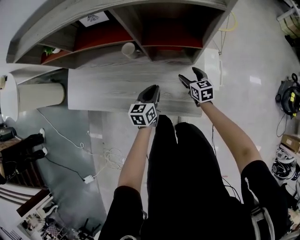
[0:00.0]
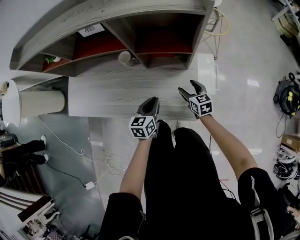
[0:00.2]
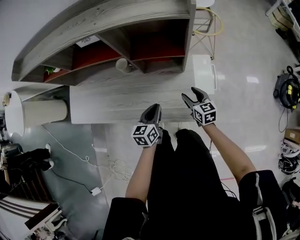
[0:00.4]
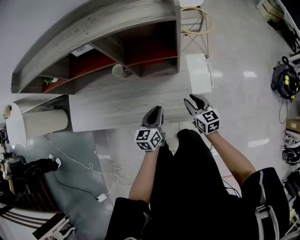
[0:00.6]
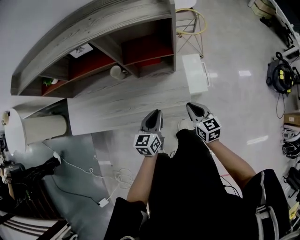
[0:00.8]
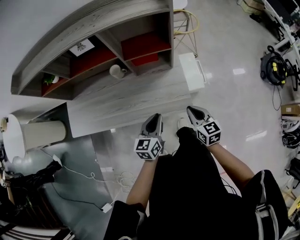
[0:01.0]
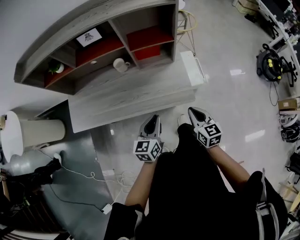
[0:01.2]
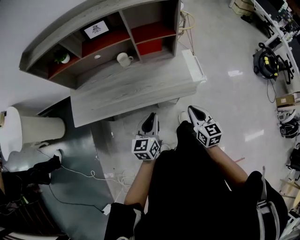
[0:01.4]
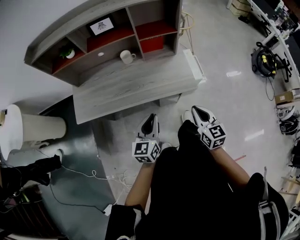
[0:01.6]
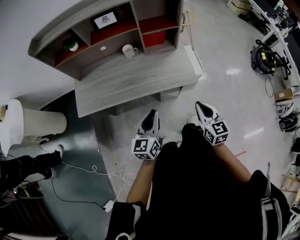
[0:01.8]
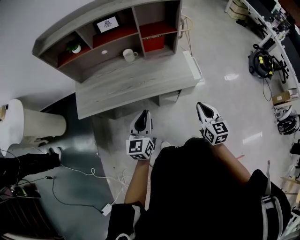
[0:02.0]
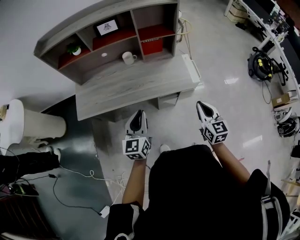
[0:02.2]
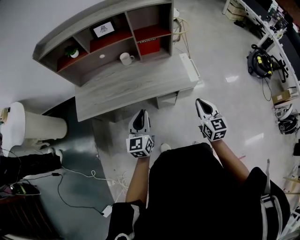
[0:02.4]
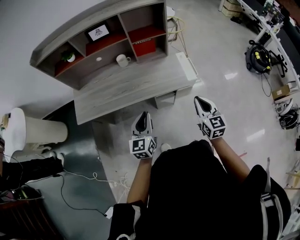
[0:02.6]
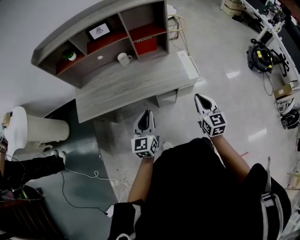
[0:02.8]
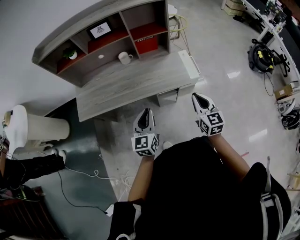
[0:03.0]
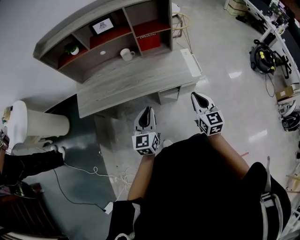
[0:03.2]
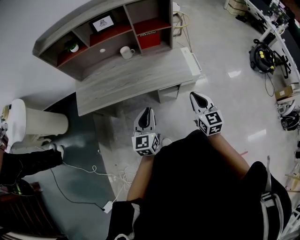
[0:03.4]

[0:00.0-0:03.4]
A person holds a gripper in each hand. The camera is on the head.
0.0 to 1.6 s: The two grippers go roughly 40 cm backward and upward. The right gripper swivels approximately 20 degrees, and closes up. Meanwhile the left gripper turns by some 20 degrees.
1.6 to 3.4 s: The left gripper travels backward by approximately 5 cm.

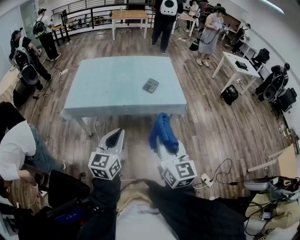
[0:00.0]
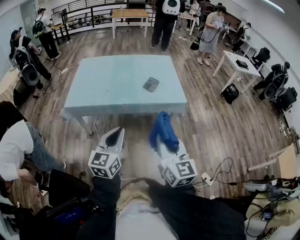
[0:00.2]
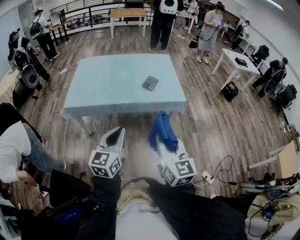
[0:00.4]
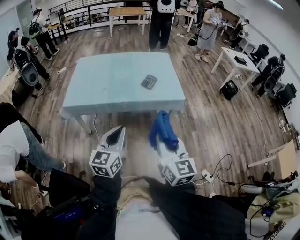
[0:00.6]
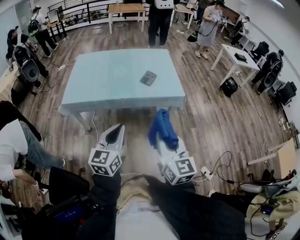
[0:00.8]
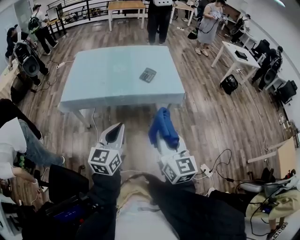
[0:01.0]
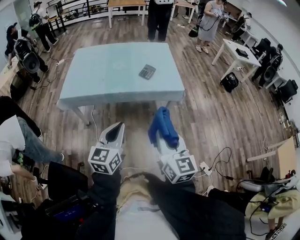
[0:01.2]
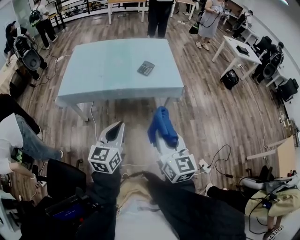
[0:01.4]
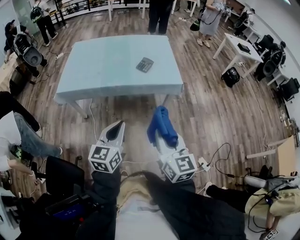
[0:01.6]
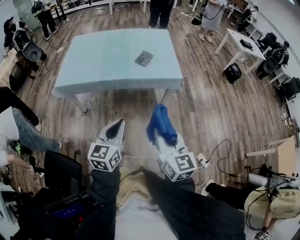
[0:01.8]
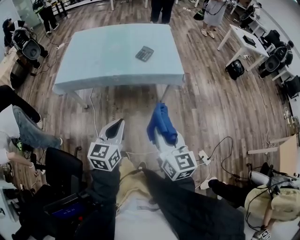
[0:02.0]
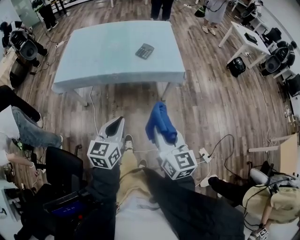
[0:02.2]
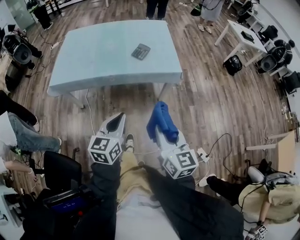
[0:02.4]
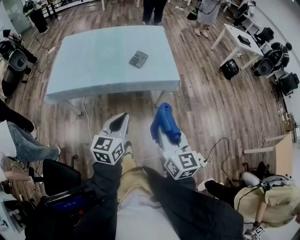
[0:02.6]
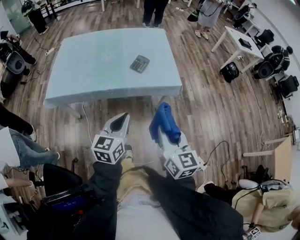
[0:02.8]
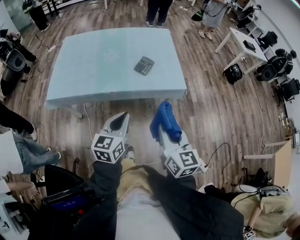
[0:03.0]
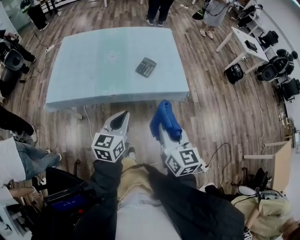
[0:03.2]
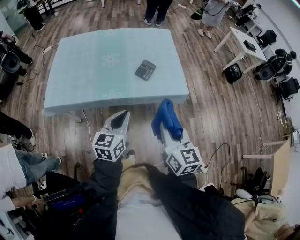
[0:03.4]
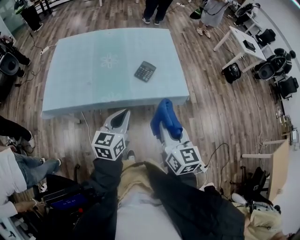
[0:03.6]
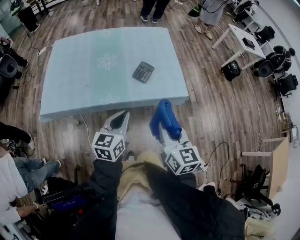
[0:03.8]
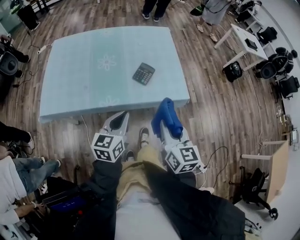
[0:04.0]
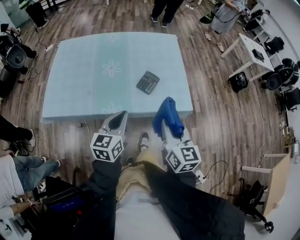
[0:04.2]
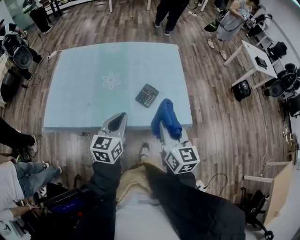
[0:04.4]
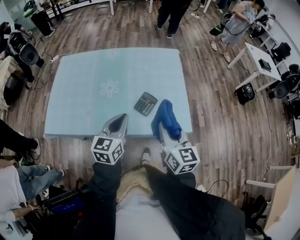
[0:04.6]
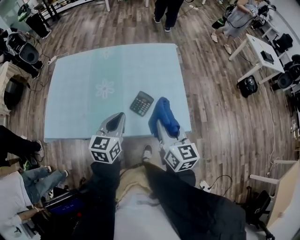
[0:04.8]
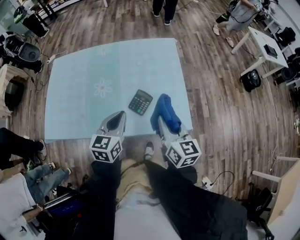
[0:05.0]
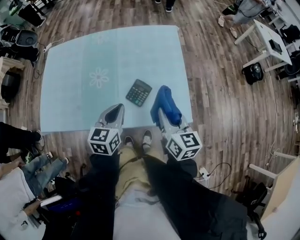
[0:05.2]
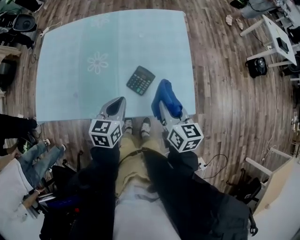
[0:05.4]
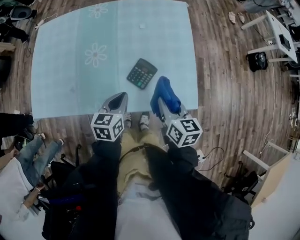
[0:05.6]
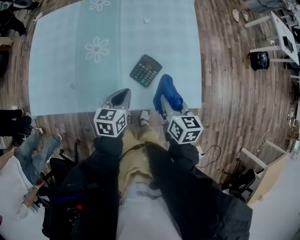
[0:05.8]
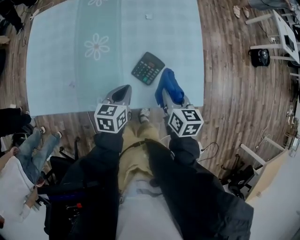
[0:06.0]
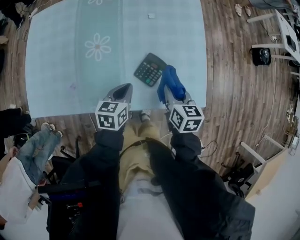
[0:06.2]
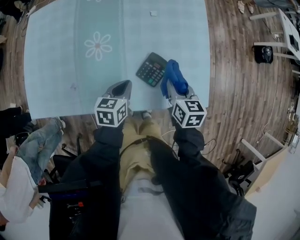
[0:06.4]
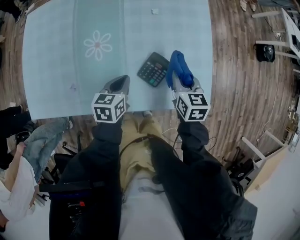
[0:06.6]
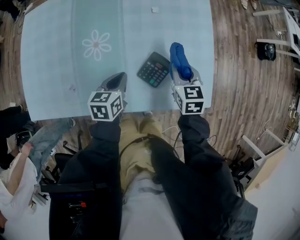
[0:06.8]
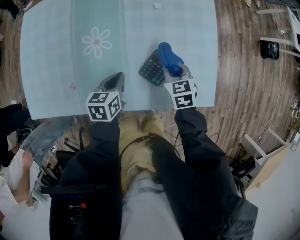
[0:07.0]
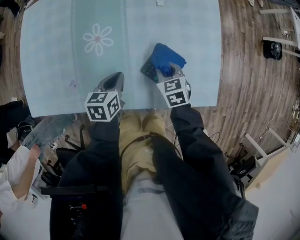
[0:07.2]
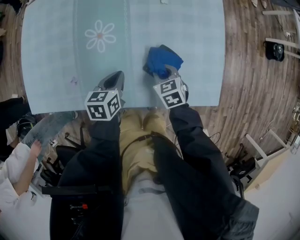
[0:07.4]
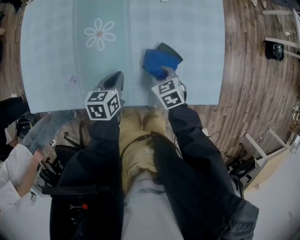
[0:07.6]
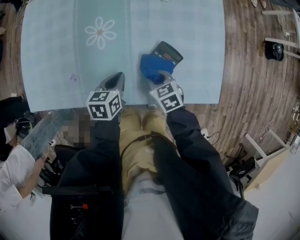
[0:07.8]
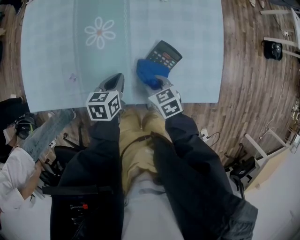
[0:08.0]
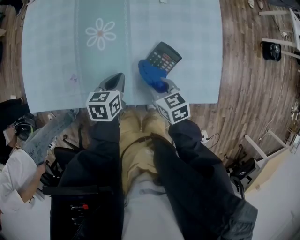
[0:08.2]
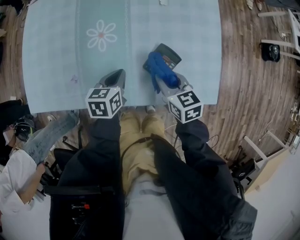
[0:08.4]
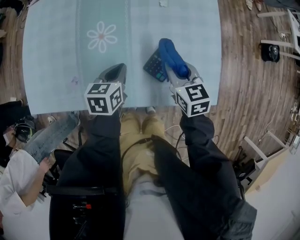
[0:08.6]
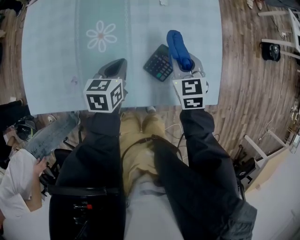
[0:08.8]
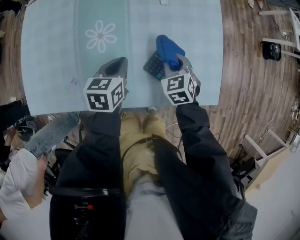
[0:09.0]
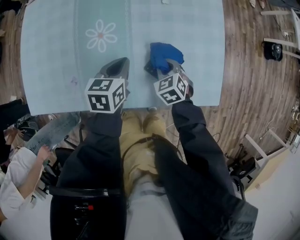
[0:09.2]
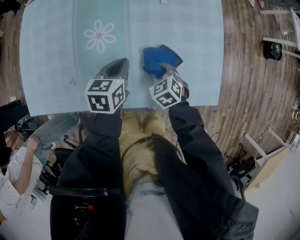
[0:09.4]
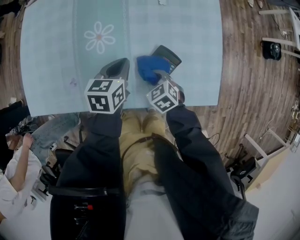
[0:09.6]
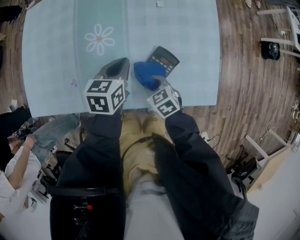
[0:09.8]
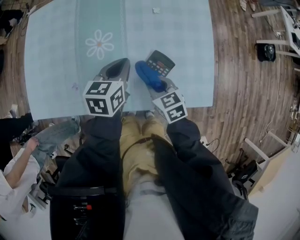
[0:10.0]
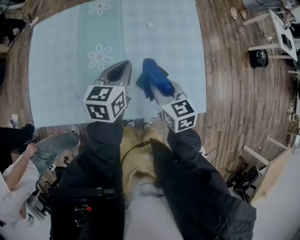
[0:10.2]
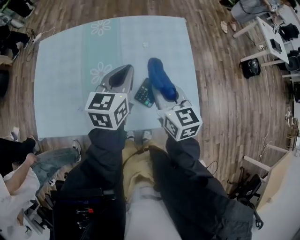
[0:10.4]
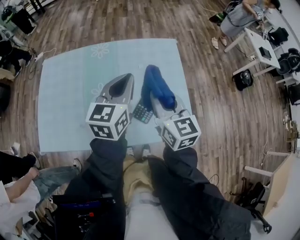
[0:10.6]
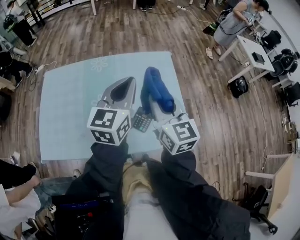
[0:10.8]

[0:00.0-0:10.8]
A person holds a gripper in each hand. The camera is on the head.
0.0 to 1.6 s: The grippers both shift to the right by about 5 cm.
1.6 to 3.0 s: The two grippers go roughly 20 cm forward.
3.0 to 4.6 s: The grippers both shift forward by some 30 cm.
4.6 to 6.2 s: Both grippers travel together downward and forward, approximately 25 cm. The right gripper changes its angle by some 30 degrees. The left gripper turns by approximately 30 degrees.
6.2 to 7.8 s: The left gripper shifts about 10 cm to the left and downward, while the right gripper is displaced downward and to the left by approximately 20 cm, and turns by about 30 degrees.
7.8 to 9.2 s: The left gripper travels forward and upward by approximately 10 cm. The right gripper heads forward, covering approximately 5 cm, travels upward and back again, approximately 10 cm each way, and changes its angle by roughly 20 degrees.
9.2 to 10.8 s: Both grippers move upward, some 40 cm. The left gripper angles its fingers upward, by approximately 40 degrees, while the right gripper angles its fingers upward, by some 50 degrees.

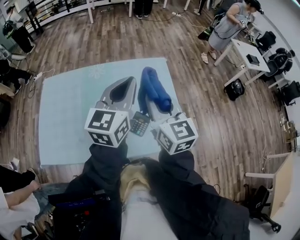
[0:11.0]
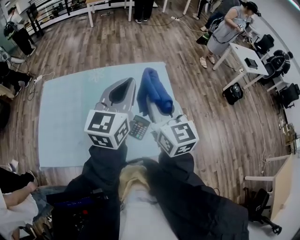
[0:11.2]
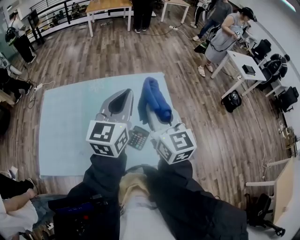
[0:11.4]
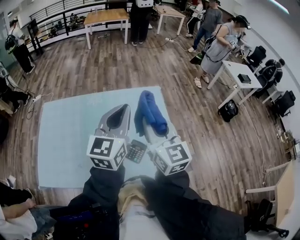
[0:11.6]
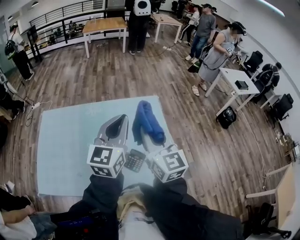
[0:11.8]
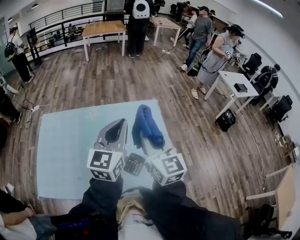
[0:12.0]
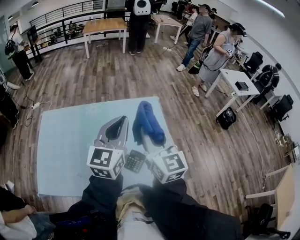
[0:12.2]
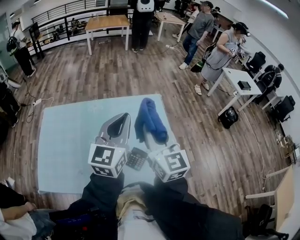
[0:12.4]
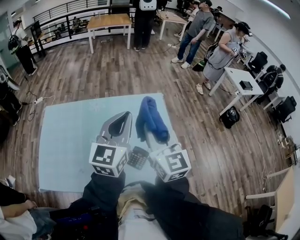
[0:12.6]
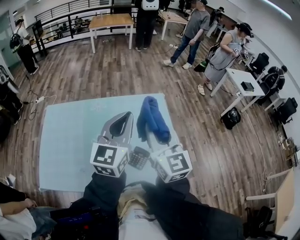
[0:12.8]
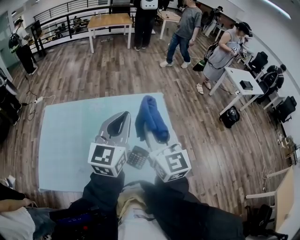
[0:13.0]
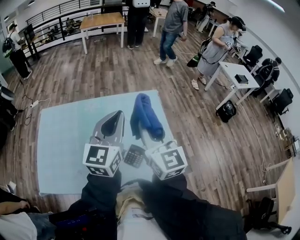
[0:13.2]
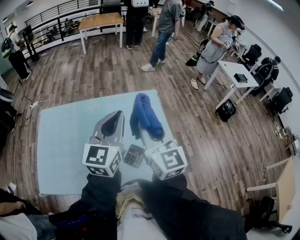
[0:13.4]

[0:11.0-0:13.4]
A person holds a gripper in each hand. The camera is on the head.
11.0 to 13.4 s: The grippers stay close to where they were, moving slightly.

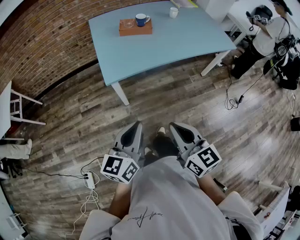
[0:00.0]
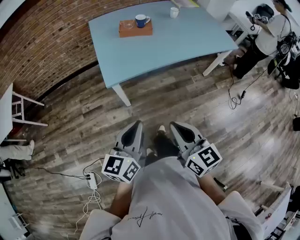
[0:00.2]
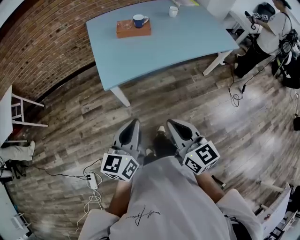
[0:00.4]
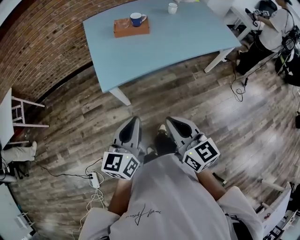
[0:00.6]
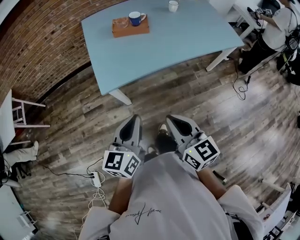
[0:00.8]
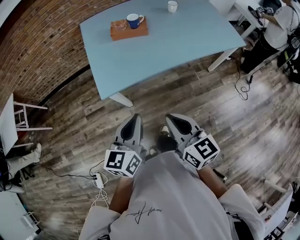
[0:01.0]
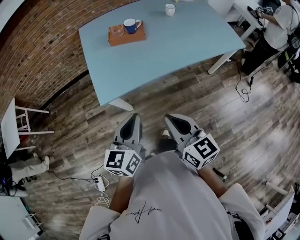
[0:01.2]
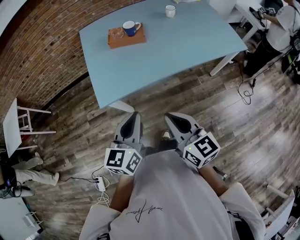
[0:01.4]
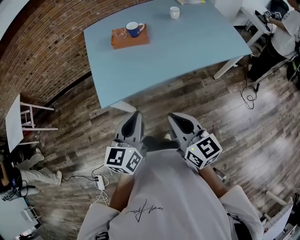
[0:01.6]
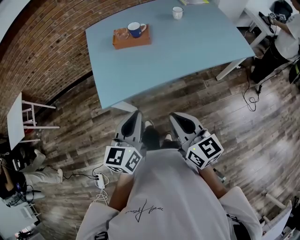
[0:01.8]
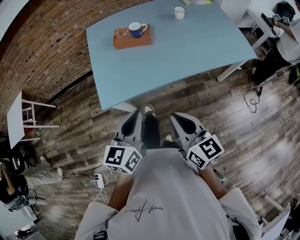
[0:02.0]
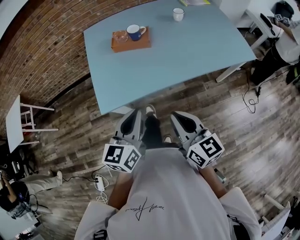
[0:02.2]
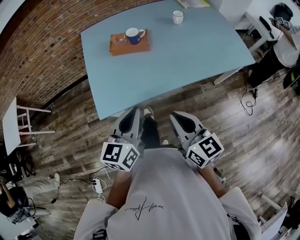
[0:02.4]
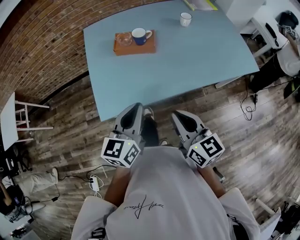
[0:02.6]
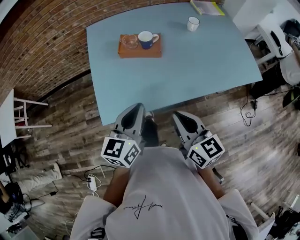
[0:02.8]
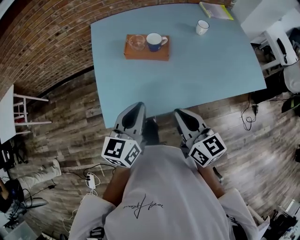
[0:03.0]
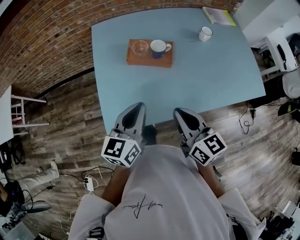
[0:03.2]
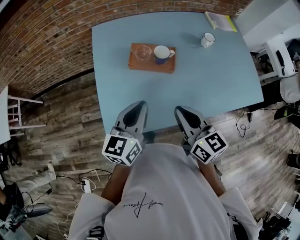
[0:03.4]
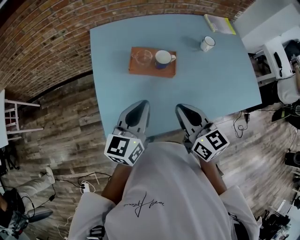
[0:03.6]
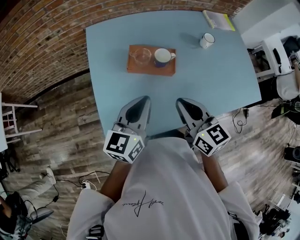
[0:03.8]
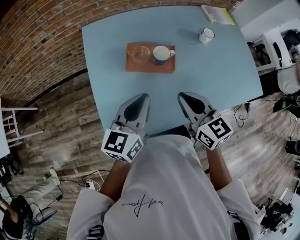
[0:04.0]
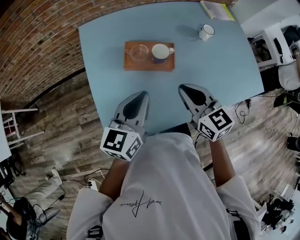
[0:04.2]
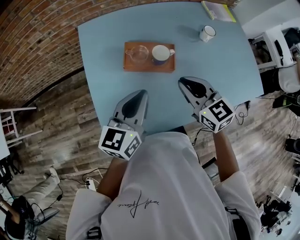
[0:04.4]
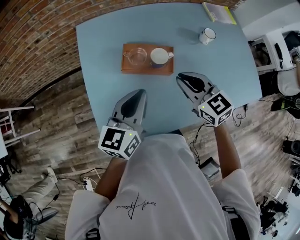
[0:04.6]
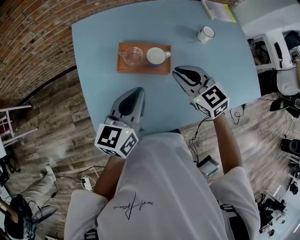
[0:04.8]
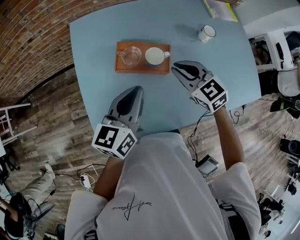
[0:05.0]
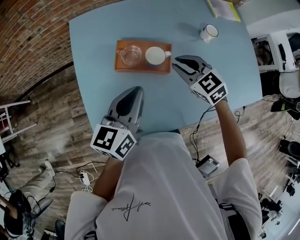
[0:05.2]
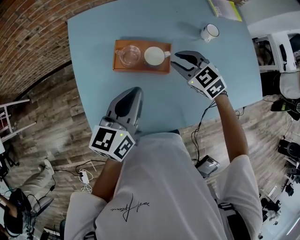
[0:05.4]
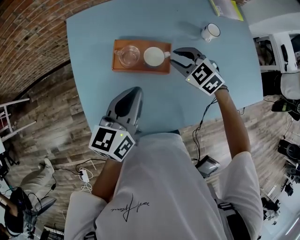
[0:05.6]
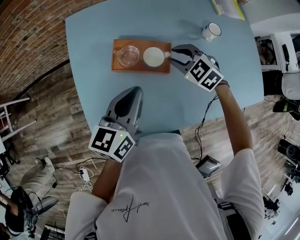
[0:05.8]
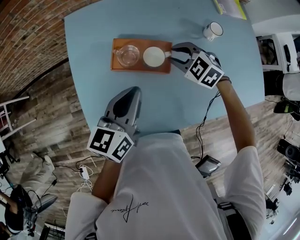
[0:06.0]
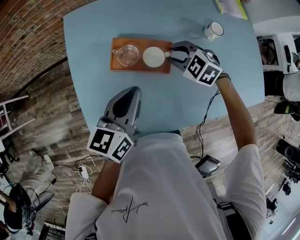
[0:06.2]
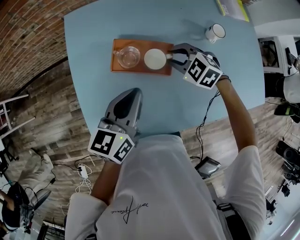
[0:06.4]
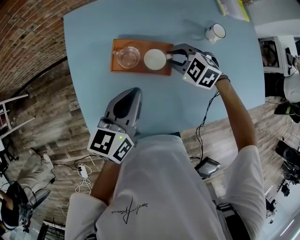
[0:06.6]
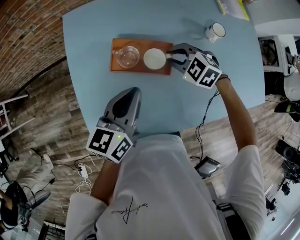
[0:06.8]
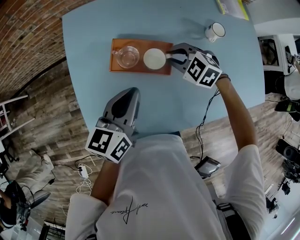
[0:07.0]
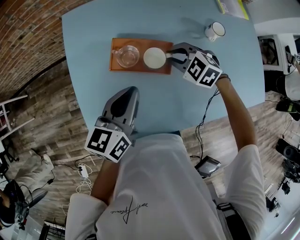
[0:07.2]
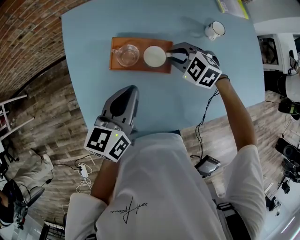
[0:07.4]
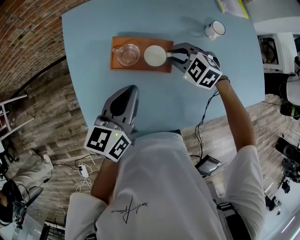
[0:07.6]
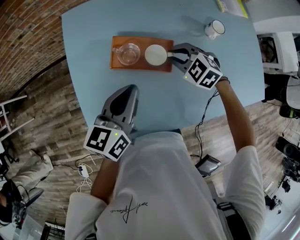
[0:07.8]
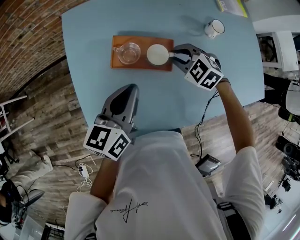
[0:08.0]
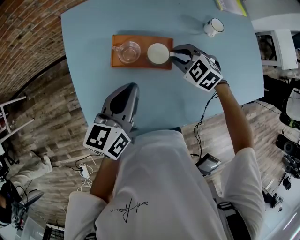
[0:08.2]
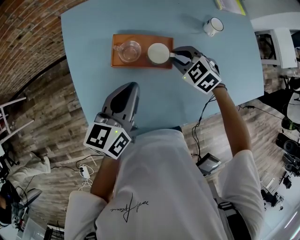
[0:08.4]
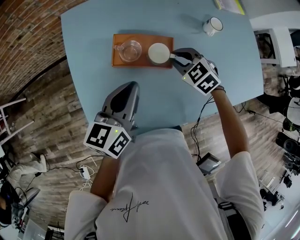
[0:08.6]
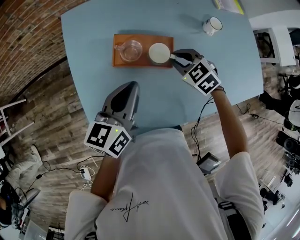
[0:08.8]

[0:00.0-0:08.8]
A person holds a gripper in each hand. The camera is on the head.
0.0 to 1.4 s: The grippers both shift forward and to the right by some 20 cm.
1.4 to 3.0 s: The grippers both shift forward by roughly 20 cm.
3.0 to 4.4 s: The two grippers go about 15 cm forward. The right gripper changes its angle by about 30 degrees.
4.4 to 5.8 s: The right gripper travels forward and downward by some 15 cm, and rotates about 40 degrees. The left gripper changes place by some 5 cm.
5.8 to 7.4 s: There are only small adjustments of the grippers.
7.4 to 8.8 s: The right gripper turns by roughly 20 degrees.
